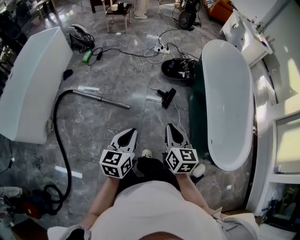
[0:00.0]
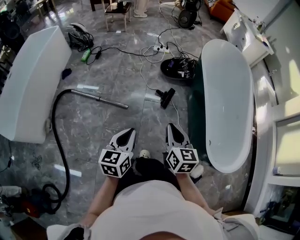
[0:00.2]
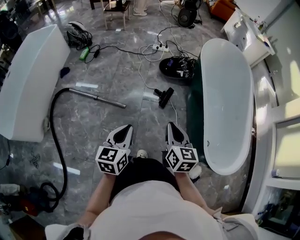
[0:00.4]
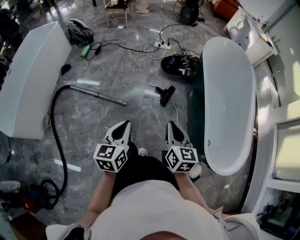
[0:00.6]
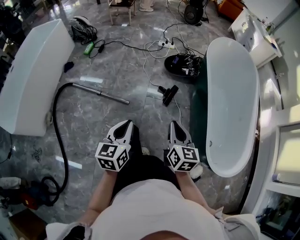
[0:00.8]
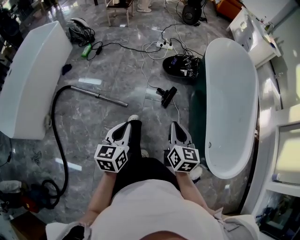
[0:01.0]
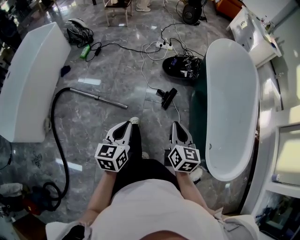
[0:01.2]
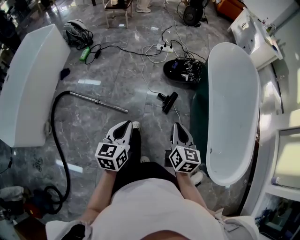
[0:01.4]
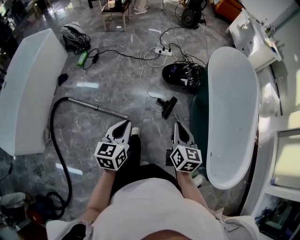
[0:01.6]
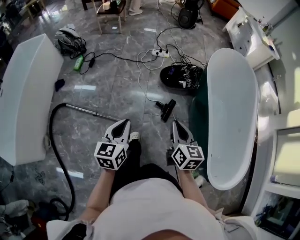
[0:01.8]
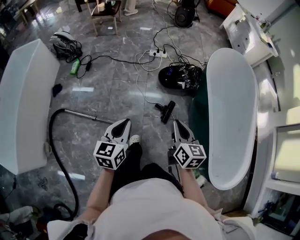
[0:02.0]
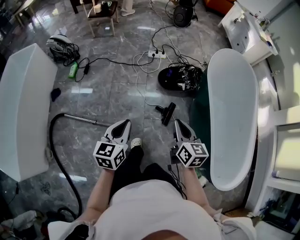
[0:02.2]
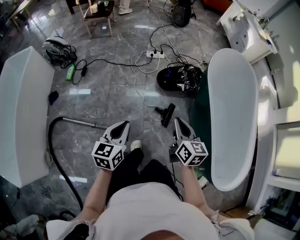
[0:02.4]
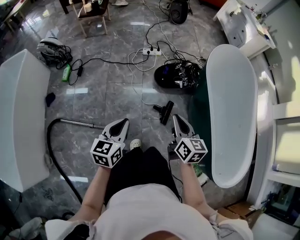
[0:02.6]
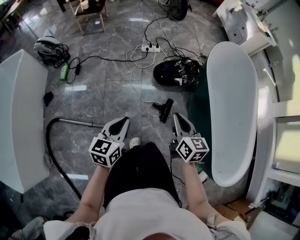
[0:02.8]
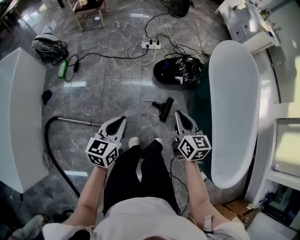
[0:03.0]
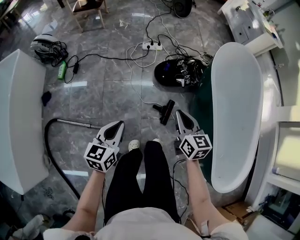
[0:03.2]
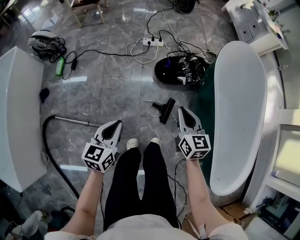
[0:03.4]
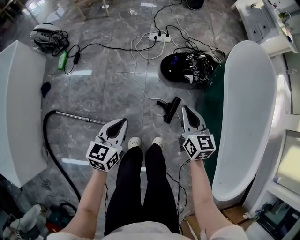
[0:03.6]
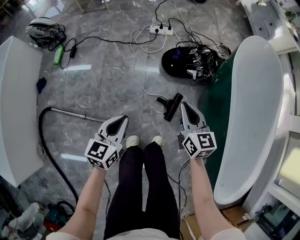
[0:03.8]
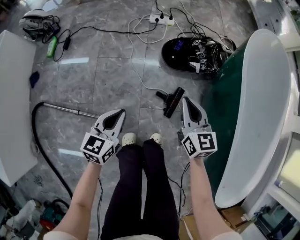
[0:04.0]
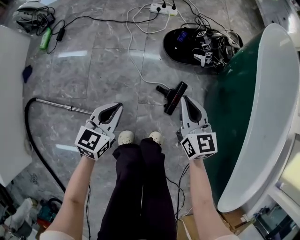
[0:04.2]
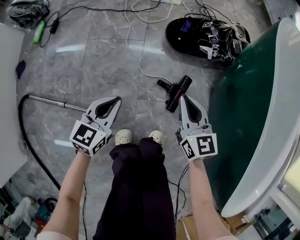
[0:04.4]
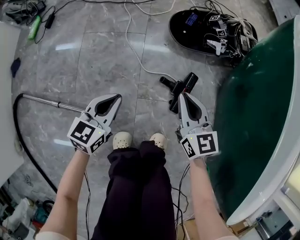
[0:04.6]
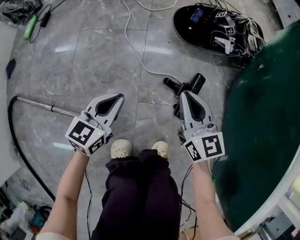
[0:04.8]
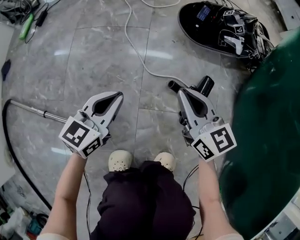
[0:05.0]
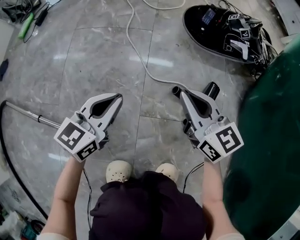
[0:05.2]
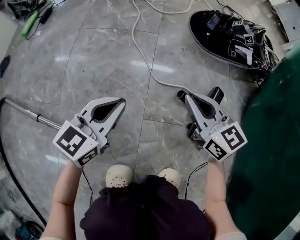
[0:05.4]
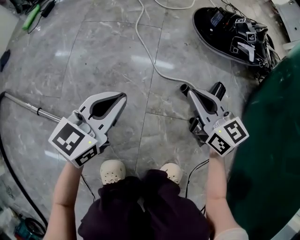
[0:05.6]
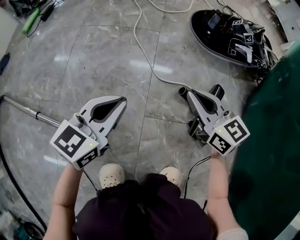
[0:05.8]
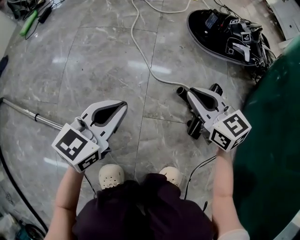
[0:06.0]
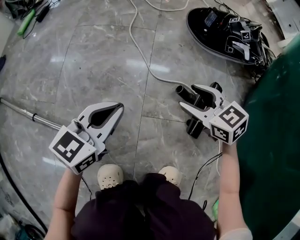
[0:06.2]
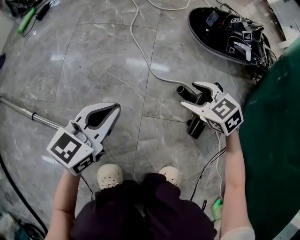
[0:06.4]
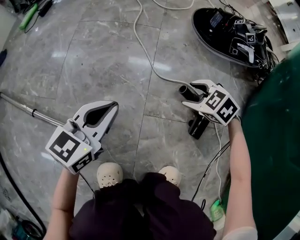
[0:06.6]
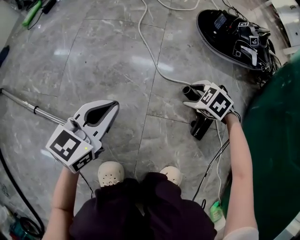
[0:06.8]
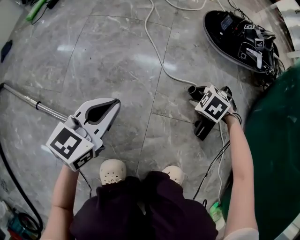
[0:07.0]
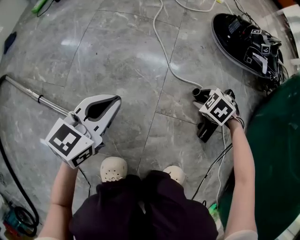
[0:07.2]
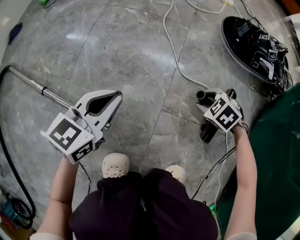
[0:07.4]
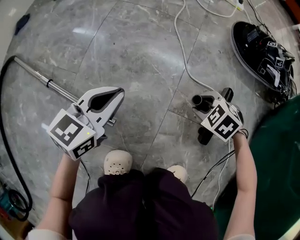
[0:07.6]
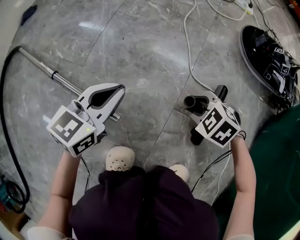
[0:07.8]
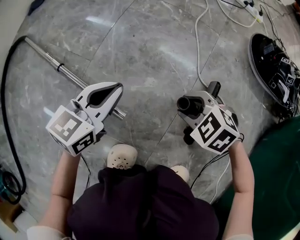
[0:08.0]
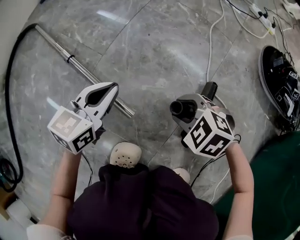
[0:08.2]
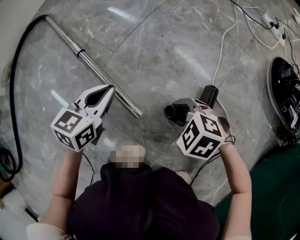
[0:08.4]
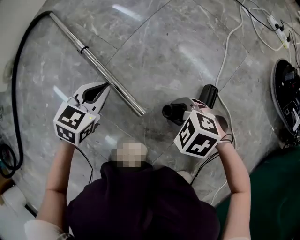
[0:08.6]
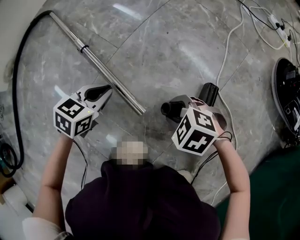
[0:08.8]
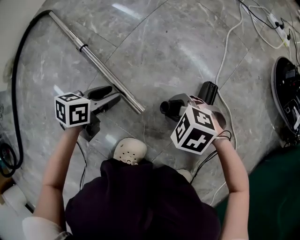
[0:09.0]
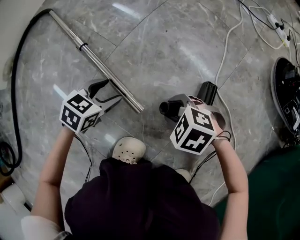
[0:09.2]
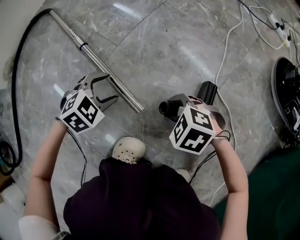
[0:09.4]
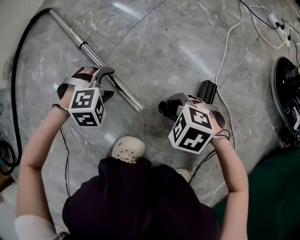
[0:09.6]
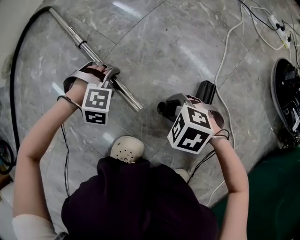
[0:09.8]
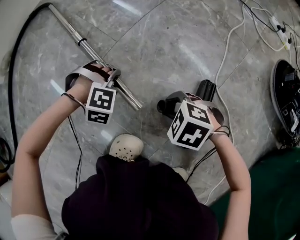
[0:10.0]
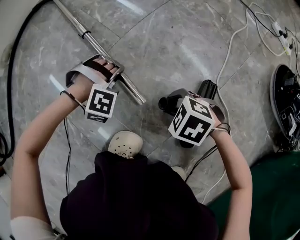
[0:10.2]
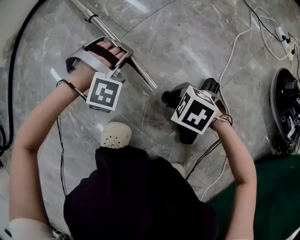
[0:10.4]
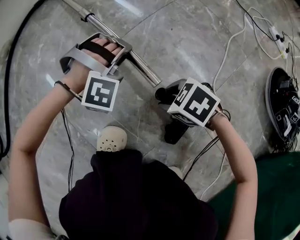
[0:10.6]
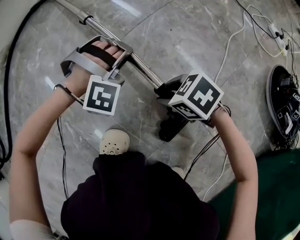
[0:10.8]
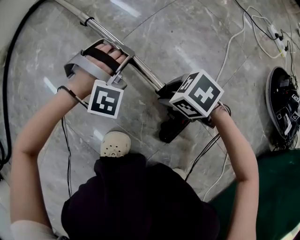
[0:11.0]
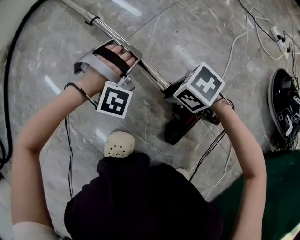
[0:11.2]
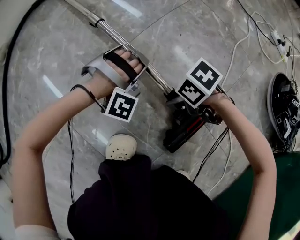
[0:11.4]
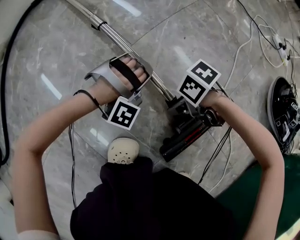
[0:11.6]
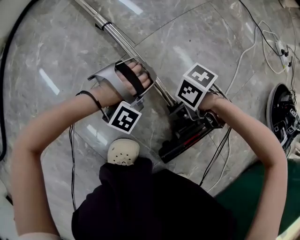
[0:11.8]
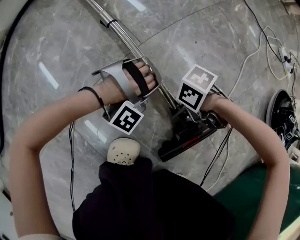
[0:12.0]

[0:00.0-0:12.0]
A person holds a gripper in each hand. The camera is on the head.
0:00.0 to 0:01.6: Both grippers travel together forward, some 20 cm.
0:01.6 to 0:03.0: Both grippers move forward, some 20 cm.
0:03.0 to 0:04.4: The two grippers go roughly 35 cm downward.
0:04.4 to 0:06.0: Both grippers move downward, roughly 25 cm. The right gripper turns by approximately 20 degrees.
0:06.0 to 0:07.6: The right gripper travels downward by approximately 15 cm, tips its fingers downward by roughly 50 degrees, and opens its fingers. The left gripper changes place by approximately 10 cm.
0:07.6 to 0:09.0: The left gripper shifts by some 20 cm, swivels roughly 40 degrees, and opens, while the right gripper changes place by some 25 cm, and rotates roughly 30 degrees.
0:09.0 to 0:10.4: The left gripper moves some 5 cm, and rolls clockwise, seen from behind, by roughly 110 degrees.
0:10.4 to 0:12.0: The right gripper swivels approximately 50 degrees; the left gripper turns by approximately 30 degrees.

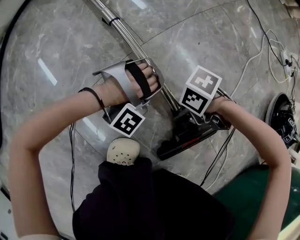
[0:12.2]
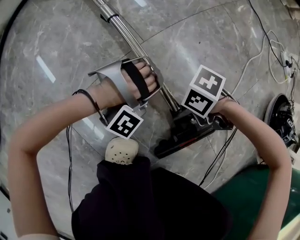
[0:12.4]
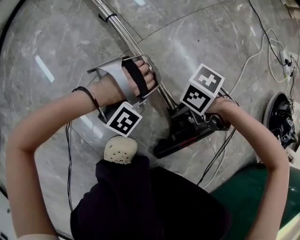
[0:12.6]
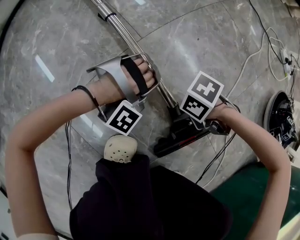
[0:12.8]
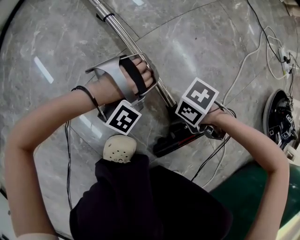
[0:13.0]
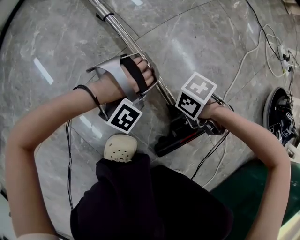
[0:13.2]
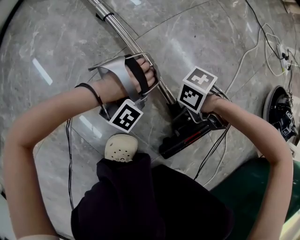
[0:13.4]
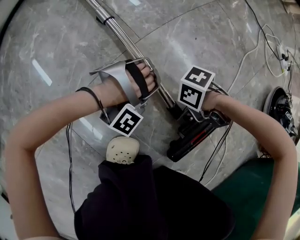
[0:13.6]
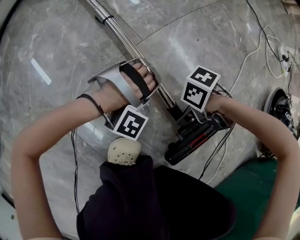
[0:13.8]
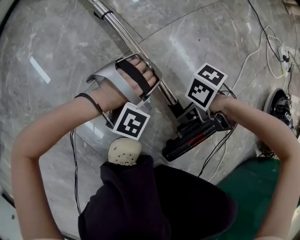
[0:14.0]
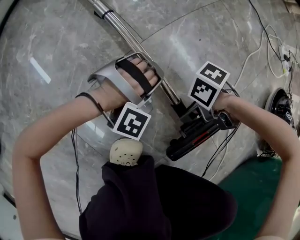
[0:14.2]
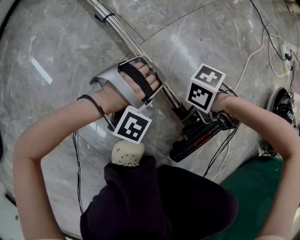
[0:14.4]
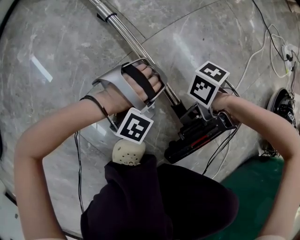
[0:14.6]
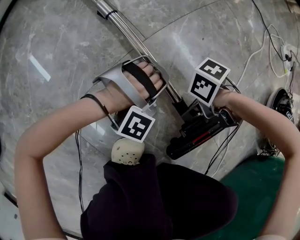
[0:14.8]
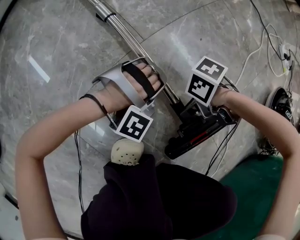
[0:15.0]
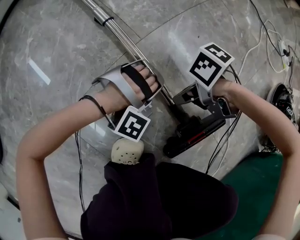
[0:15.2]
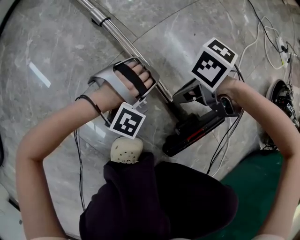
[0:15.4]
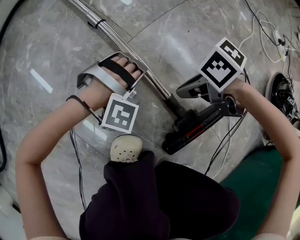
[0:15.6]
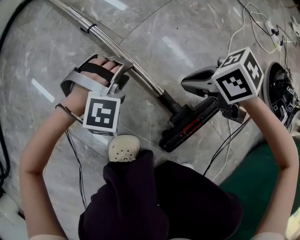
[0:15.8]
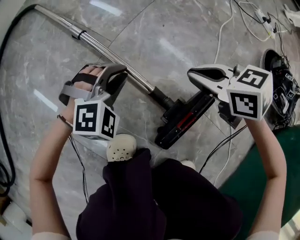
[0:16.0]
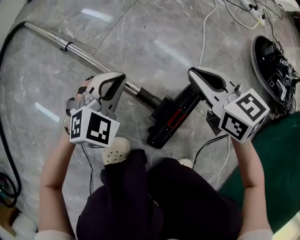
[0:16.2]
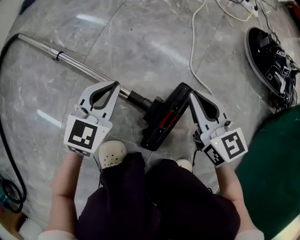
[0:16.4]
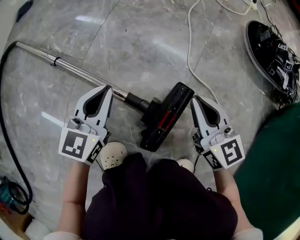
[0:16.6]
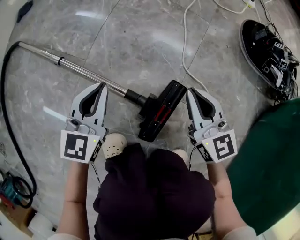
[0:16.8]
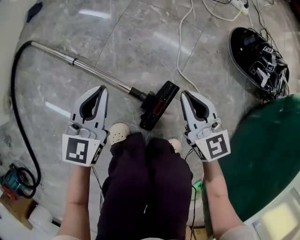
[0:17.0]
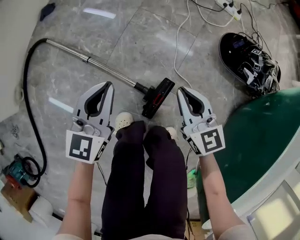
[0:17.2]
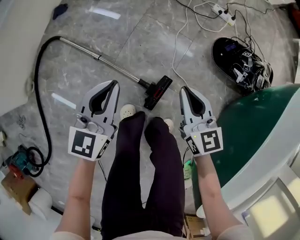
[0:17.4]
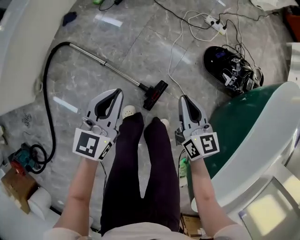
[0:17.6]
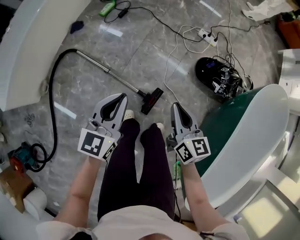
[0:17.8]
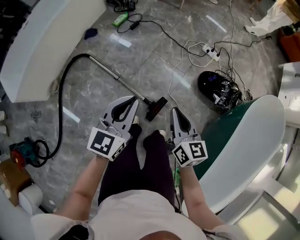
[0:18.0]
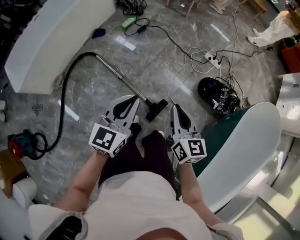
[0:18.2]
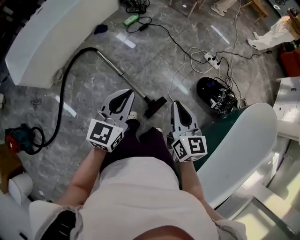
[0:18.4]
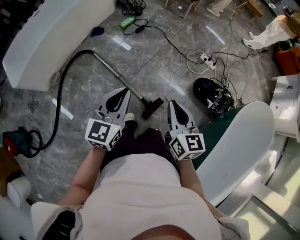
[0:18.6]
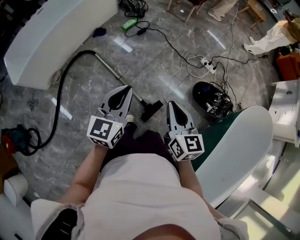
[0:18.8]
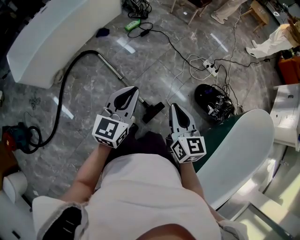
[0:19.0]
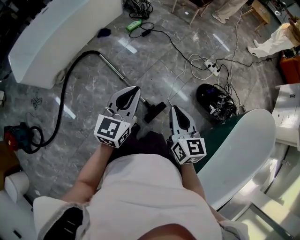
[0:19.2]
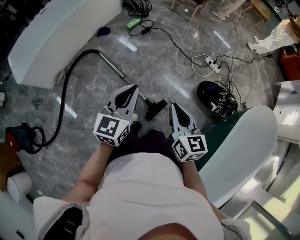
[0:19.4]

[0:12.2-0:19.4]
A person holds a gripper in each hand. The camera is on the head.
0:12.2 to 0:13.6: There are only small adjustments of the grippers.
0:13.6 to 0:15.0: The grippers stay close to where they were, moving slightly.
0:15.0 to 0:16.6: The left gripper goes roughly 10 cm upward, rotates around the line of its fingers by roughly 100 degrees, counterclockwise from behind, and closes its fingers. Meanwhile the right gripper moves about 20 cm, rotates approximately 120 degrees, and closes up.
0:16.6 to 0:18.0: The two grippers go about 70 cm upward.
0:18.0 to 0:19.4: The right gripper moves upward, roughly 5 cm; the left gripper ends up about 5 cm from where it was.

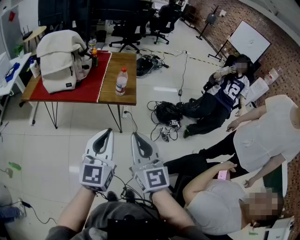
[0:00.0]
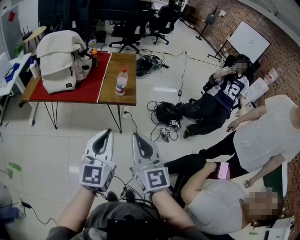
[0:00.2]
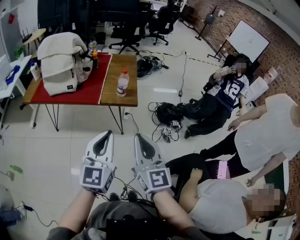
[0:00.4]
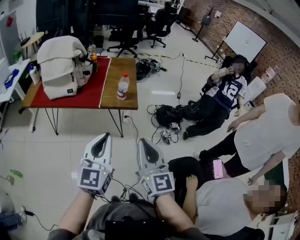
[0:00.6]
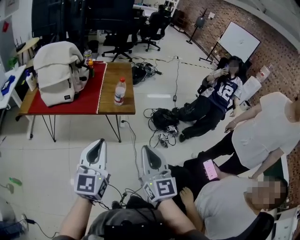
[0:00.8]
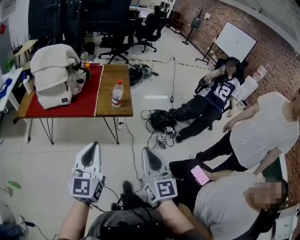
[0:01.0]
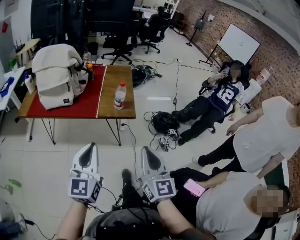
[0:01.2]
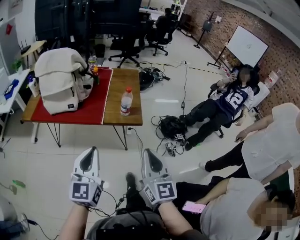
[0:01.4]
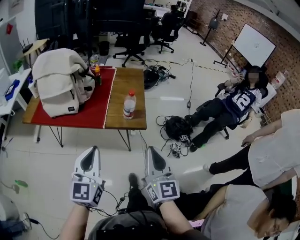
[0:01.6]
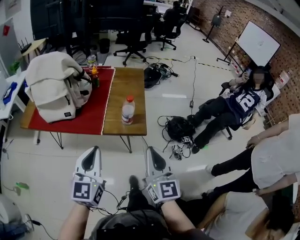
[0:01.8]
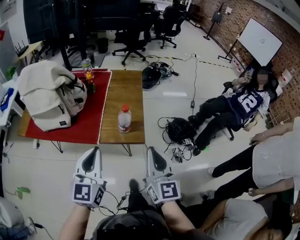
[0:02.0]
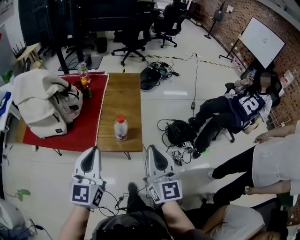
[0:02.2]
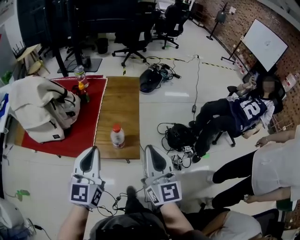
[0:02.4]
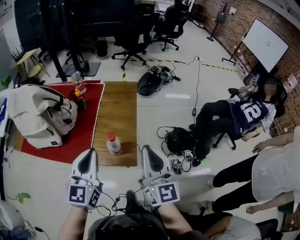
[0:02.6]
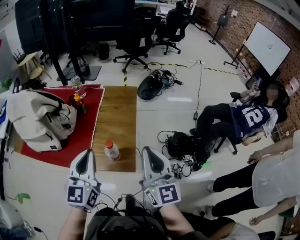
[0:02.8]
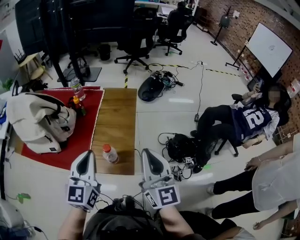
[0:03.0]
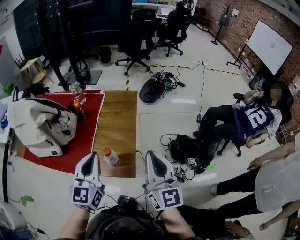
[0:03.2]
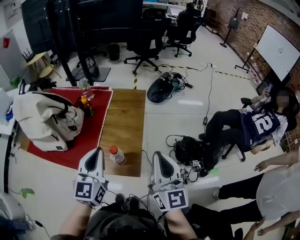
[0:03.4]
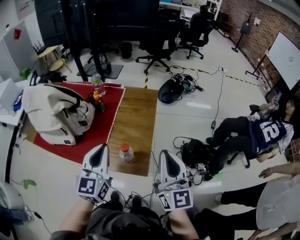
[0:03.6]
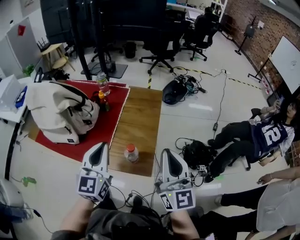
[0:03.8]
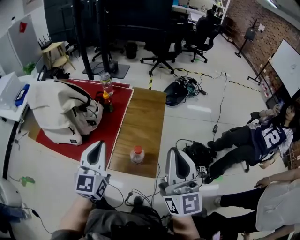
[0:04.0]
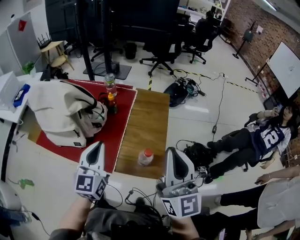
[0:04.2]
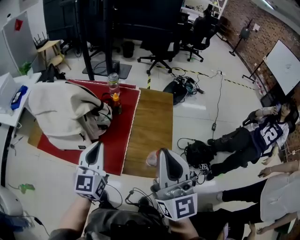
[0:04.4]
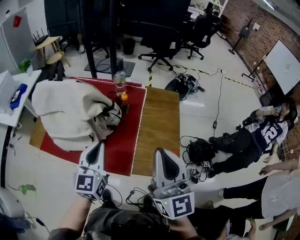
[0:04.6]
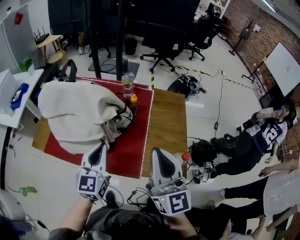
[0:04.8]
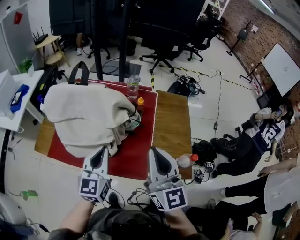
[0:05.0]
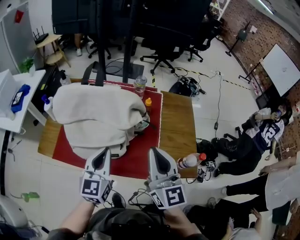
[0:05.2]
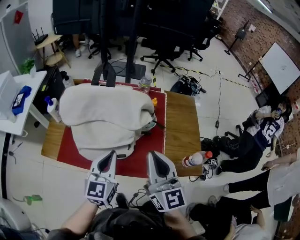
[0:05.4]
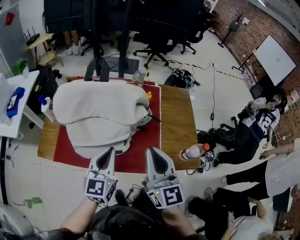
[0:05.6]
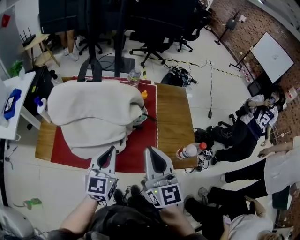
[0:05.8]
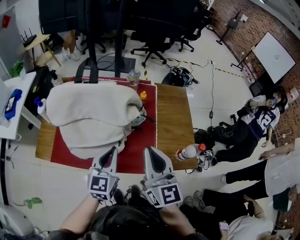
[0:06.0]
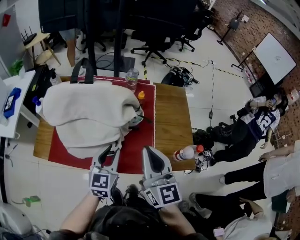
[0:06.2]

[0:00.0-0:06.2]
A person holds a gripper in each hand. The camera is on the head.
0:00.0 to 0:01.6: The left gripper travels forward and to the left by roughly 20 cm; the right gripper goes about 15 cm forward.
0:01.6 to 0:03.2: The two grippers go approximately 40 cm forward and to the right.
0:03.2 to 0:04.6: Both grippers travel together to the left, about 30 cm.
0:04.6 to 0:06.2: Both grippers travel together to the left and downward, approximately 20 cm. The left gripper opens its fingers.
